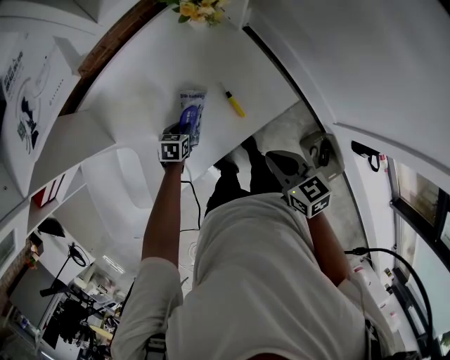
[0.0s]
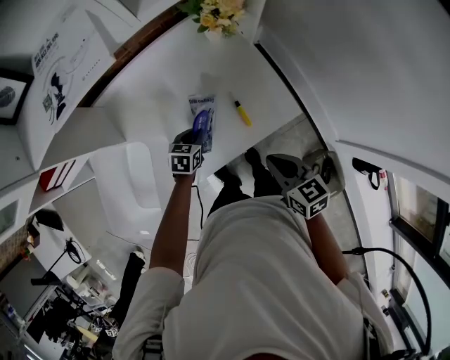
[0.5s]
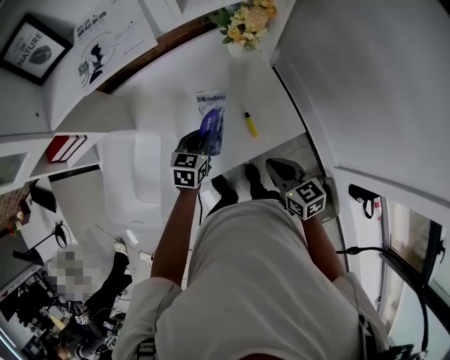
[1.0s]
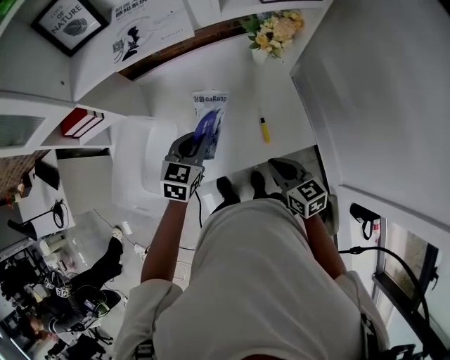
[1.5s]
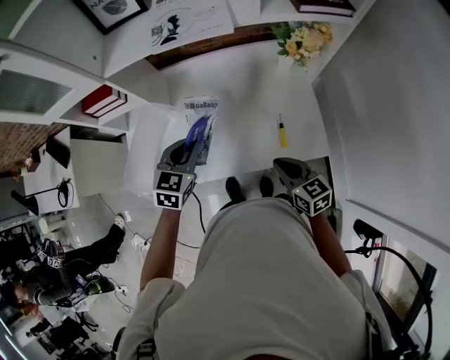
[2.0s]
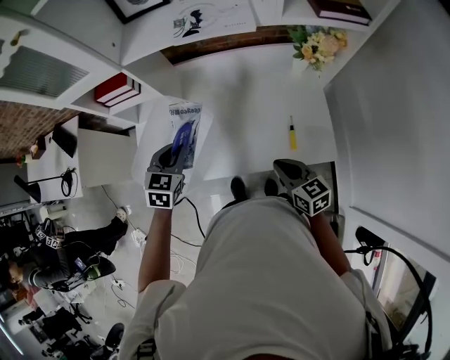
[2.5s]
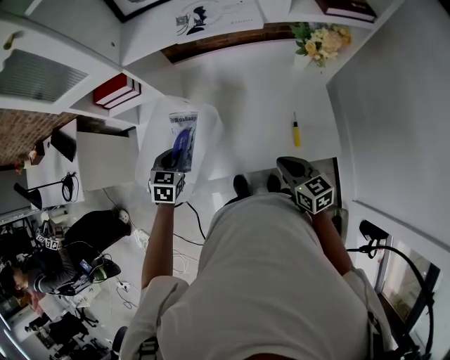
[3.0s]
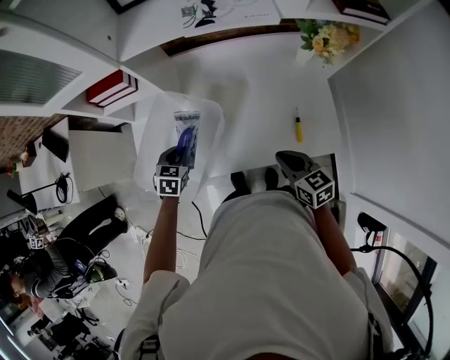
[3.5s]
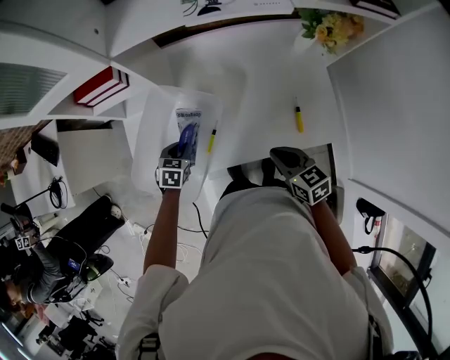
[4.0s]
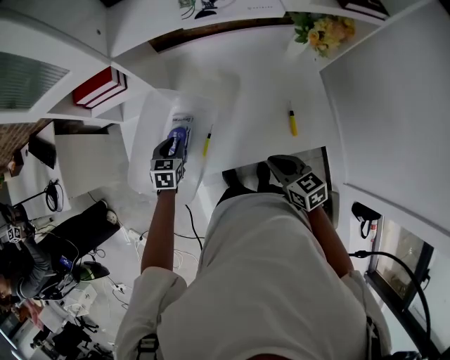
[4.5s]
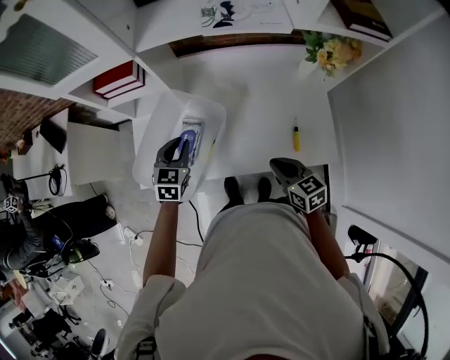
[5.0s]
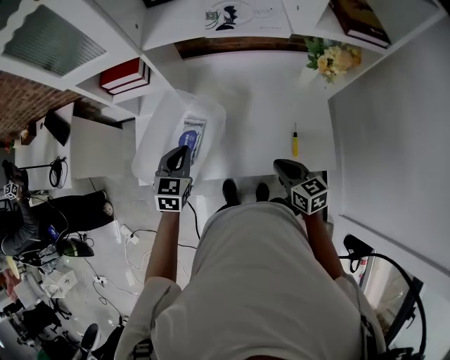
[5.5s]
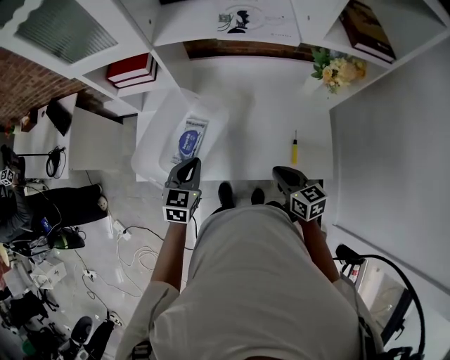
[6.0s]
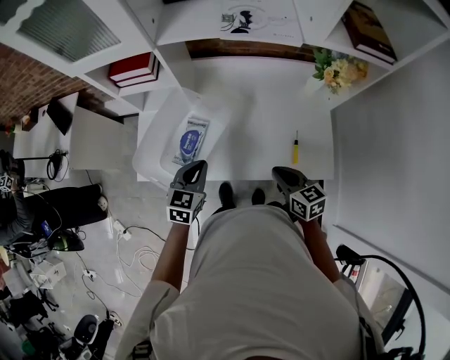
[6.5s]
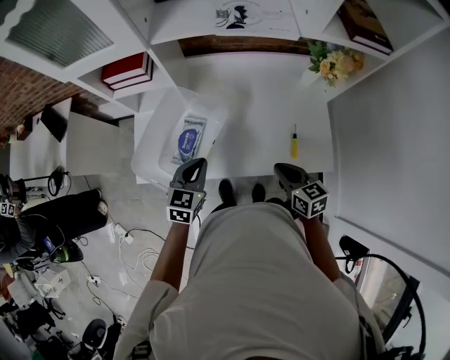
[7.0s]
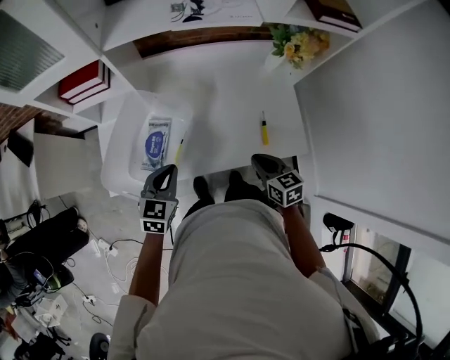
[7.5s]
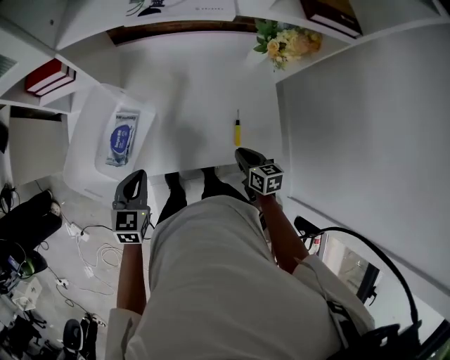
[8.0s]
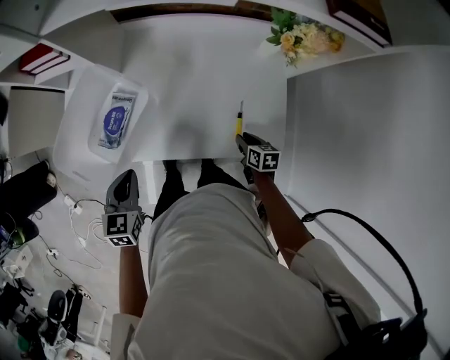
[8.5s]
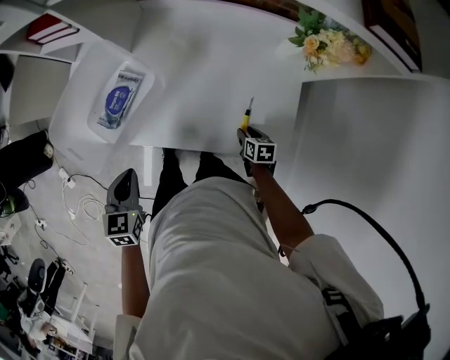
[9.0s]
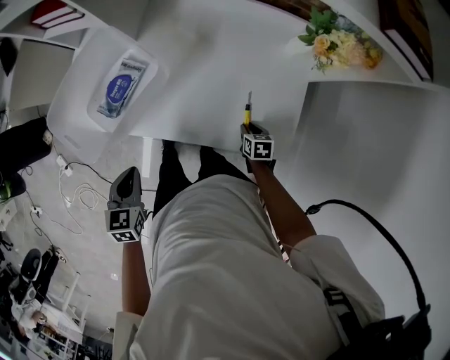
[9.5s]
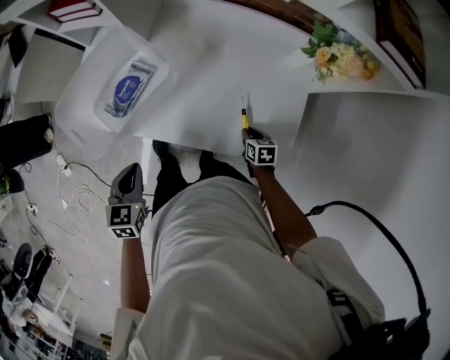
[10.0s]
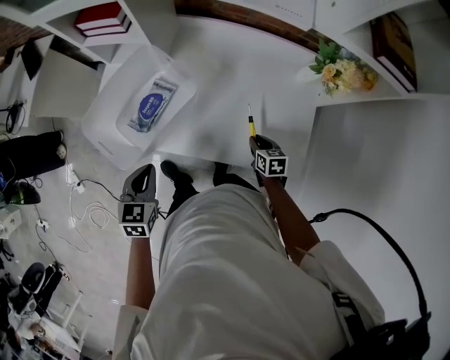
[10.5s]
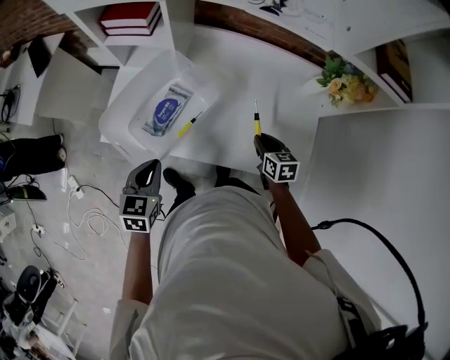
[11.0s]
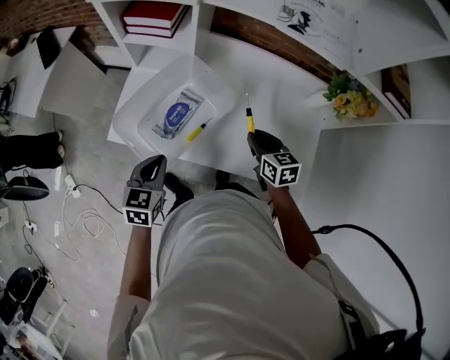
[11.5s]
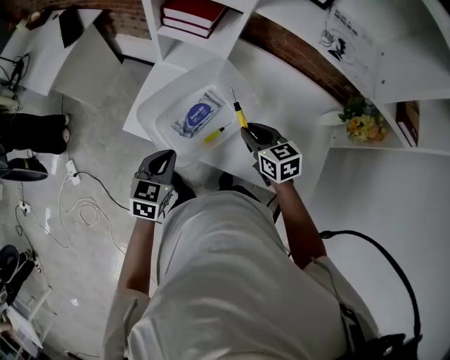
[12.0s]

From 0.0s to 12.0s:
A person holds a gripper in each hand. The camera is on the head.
From 0.0s to 2.0s: The right gripper shifts by roughly 10 cm, and changes its angle by approximately 30 degrees; the left gripper travels upward by some 30 cm, and turns by roughly 30 degrees.
From 2.0s to 4.0s: The left gripper goes approximately 25 cm downward and to the left, and changes its angle by approximately 20 degrees; the right gripper travels to the left by some 10 cm.
From 4.0s to 6.0s: The left gripper heads upward and backward, covering some 20 cm, and swivels approximately 30 degrees.
From 6.0s to 8.0s: The right gripper shifts roughly 15 cm downward and to the right; the left gripper shifts by some 5 cm.
From 8.0s to 10.0s: The left gripper is displaced backward by about 10 cm, and turns by roughly 30 degrees. The right gripper is displaced downward by roughly 15 cm, and changes its angle by some 20 degrees.
From 10.0s to 12.0s: The right gripper goes approximately 40 cm to the left, upward and forward, and swivels about 40 degrees, while the left gripper is displaced to the left and forward by some 15 cm.

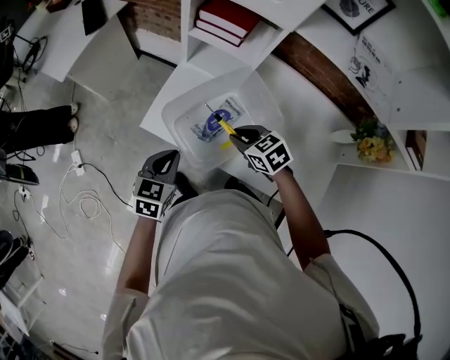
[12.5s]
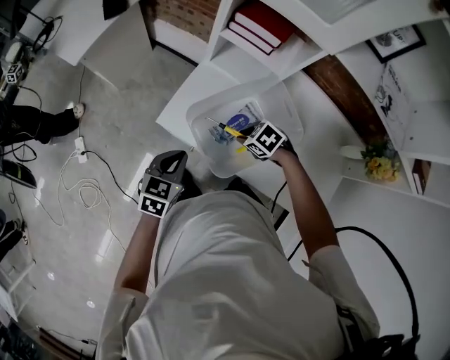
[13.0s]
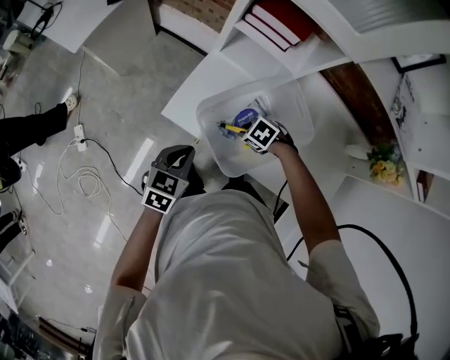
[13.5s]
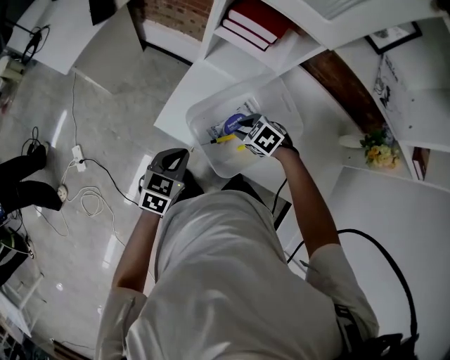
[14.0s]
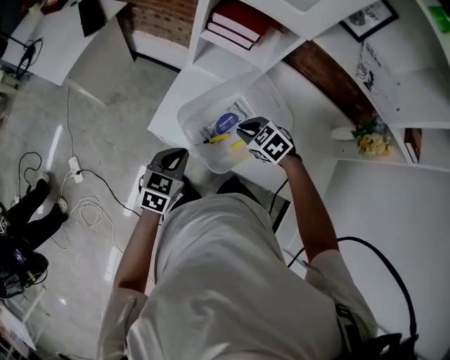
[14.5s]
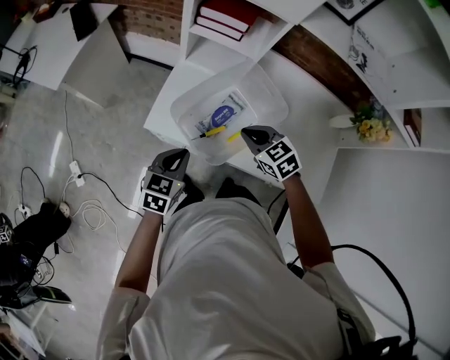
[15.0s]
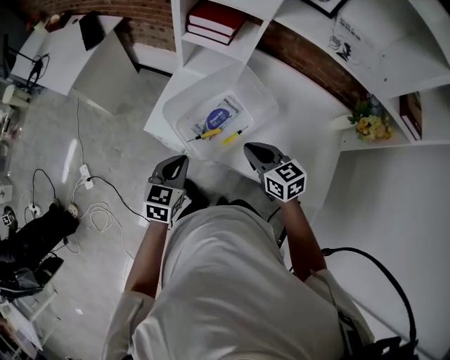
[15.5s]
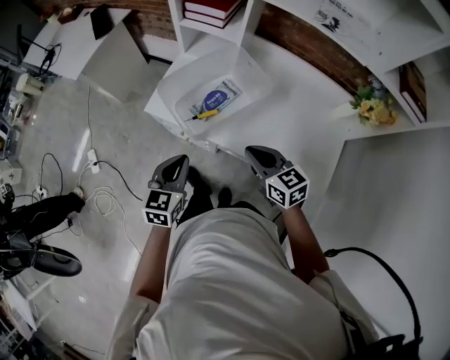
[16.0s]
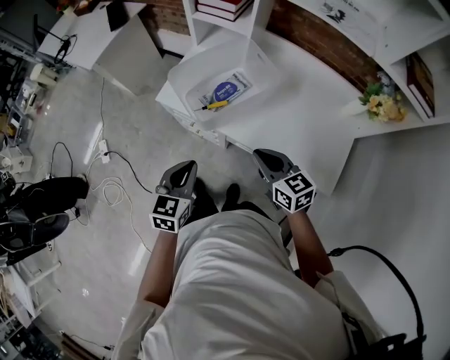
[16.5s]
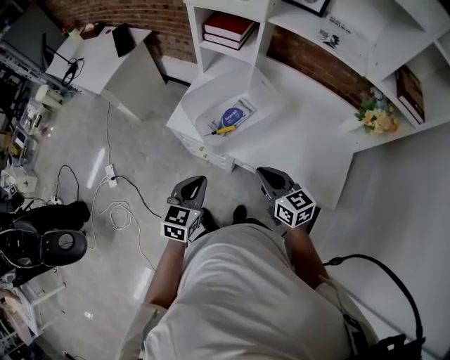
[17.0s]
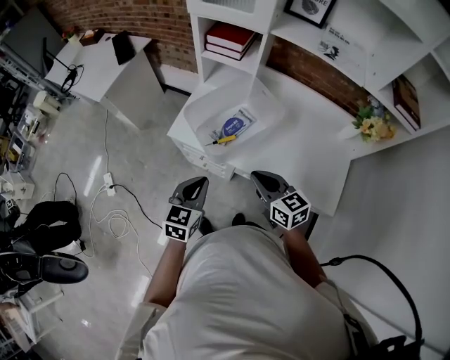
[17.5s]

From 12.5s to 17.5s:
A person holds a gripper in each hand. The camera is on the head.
From 12.5s to 15.0s: The right gripper moves some 15 cm downward and comes back.
From 15.0s to 17.5s: The grippers both shift backward and upward by about 20 cm. The right gripper changes its angle by about 30 degrees.

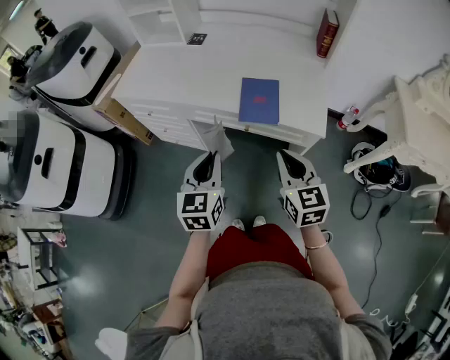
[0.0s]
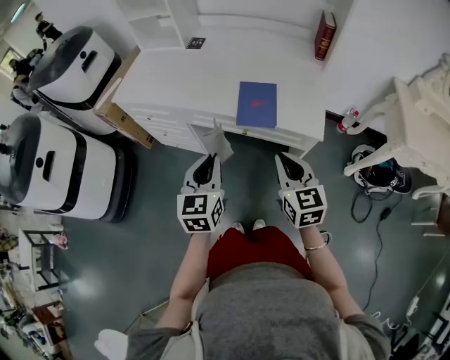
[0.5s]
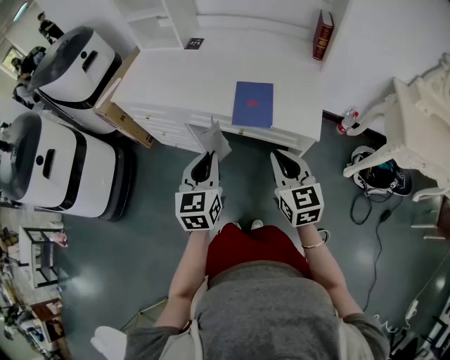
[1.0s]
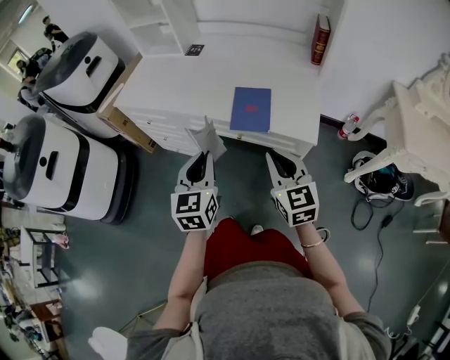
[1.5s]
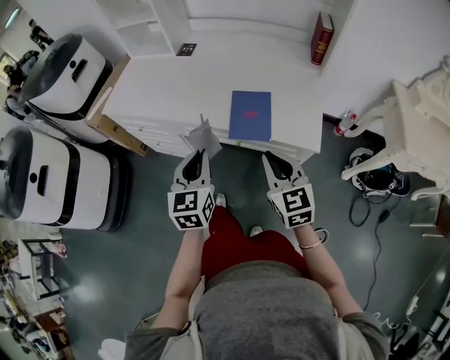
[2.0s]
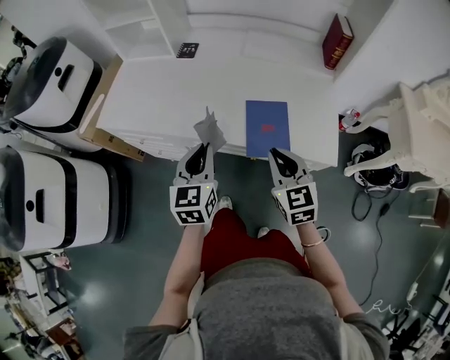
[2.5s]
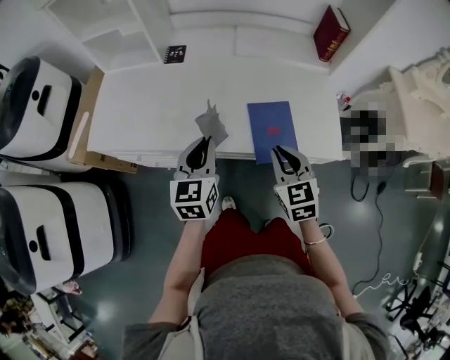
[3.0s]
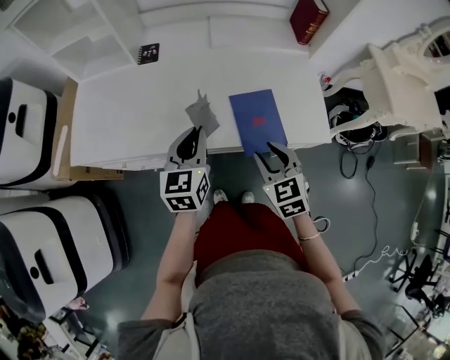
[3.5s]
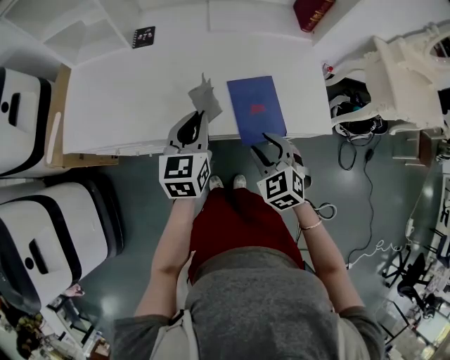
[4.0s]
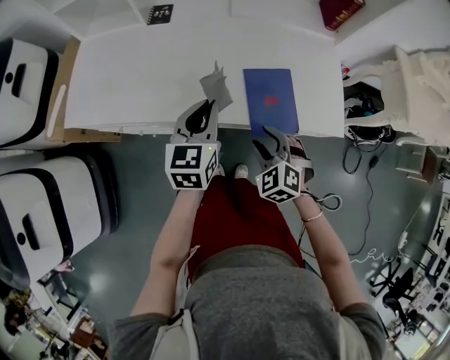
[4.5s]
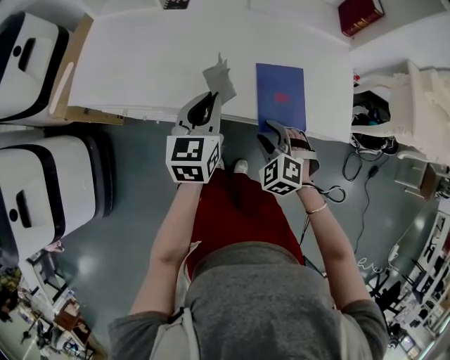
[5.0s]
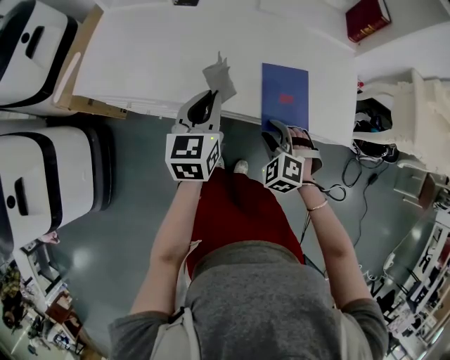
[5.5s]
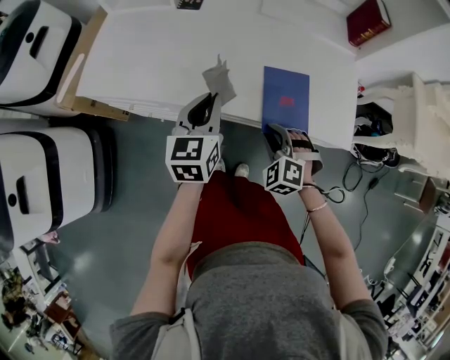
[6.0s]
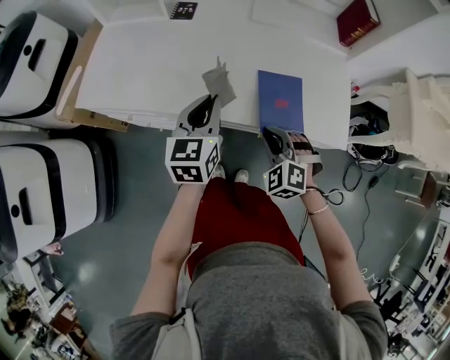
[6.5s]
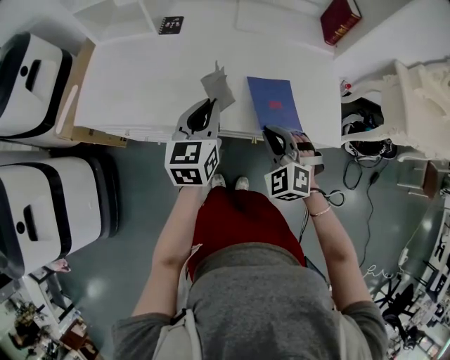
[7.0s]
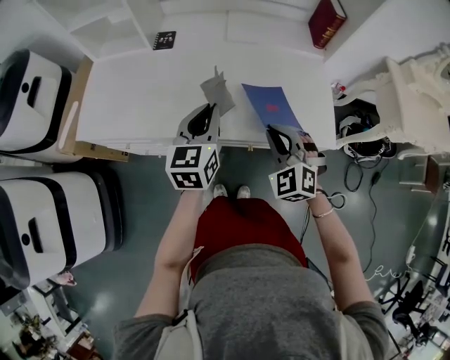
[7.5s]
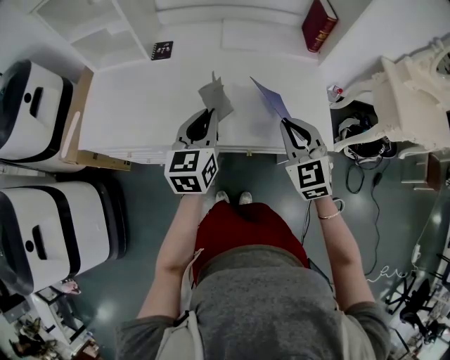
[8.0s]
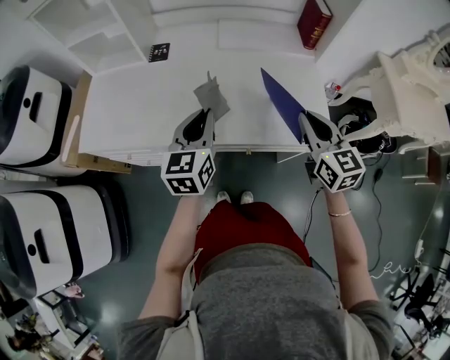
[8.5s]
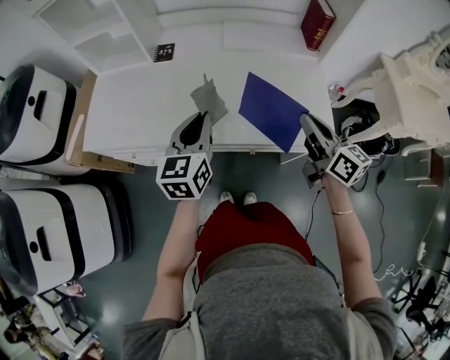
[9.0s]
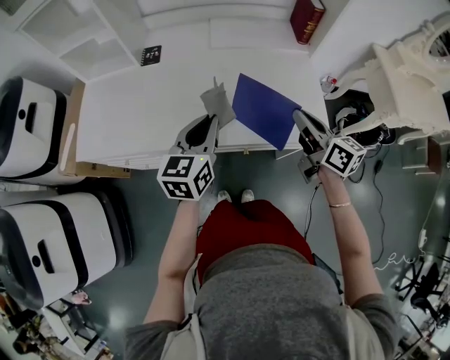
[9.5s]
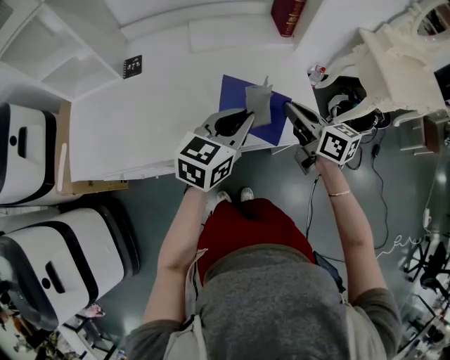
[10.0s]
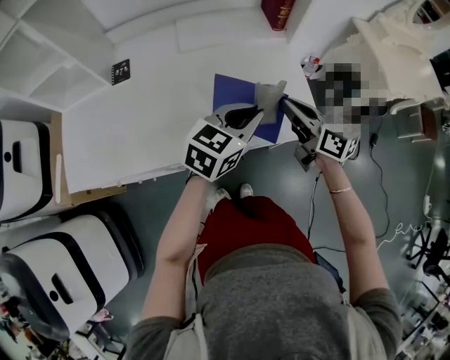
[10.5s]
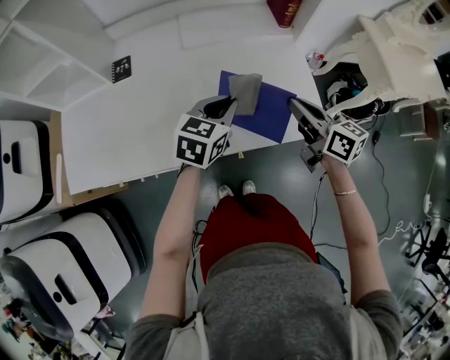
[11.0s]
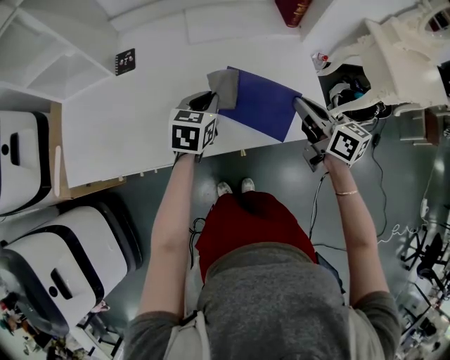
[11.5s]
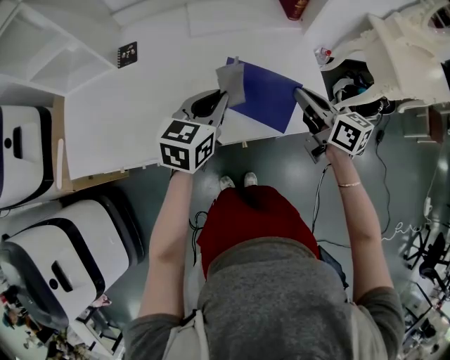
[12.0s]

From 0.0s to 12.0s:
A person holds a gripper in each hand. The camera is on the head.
From 0.0s to 2.0s: Both grippers move forward, approximately 5 cm.
From 2.0s to 4.0s: The left gripper shifts some 20 cm forward, and swivels approximately 20 degrees, while the right gripper travels forward, downward and to the left by roughly 15 cm, rotates approximately 30 degrees, and opens its fingers.
From 4.0s to 6.0s: The right gripper goes roughly 5 cm downward, and changes its angle by approximately 30 degrees.
From 6.0s to 8.0s: The left gripper is displaced upward and to the right by about 10 cm. The right gripper heads upward and to the right, covering approximately 20 cm, and turns by some 40 degrees.
From 8.0s to 10.0s: The left gripper moves to the right, approximately 15 cm, and rotates roughly 40 degrees. The right gripper travels to the right by roughly 10 cm, and twists some 60 degrees clockwise, seen from behind.
From 10.0s to 12.0s: The left gripper goes roughly 10 cm to the left and forward.
